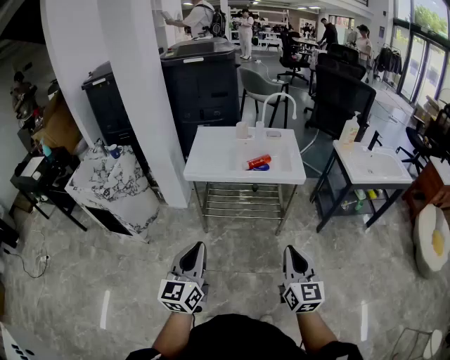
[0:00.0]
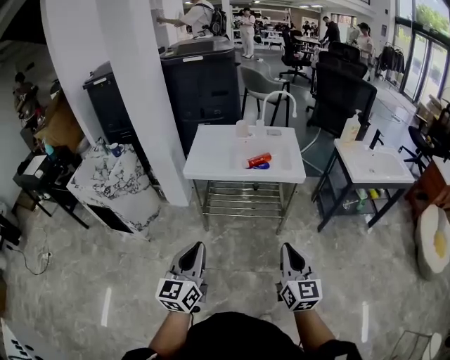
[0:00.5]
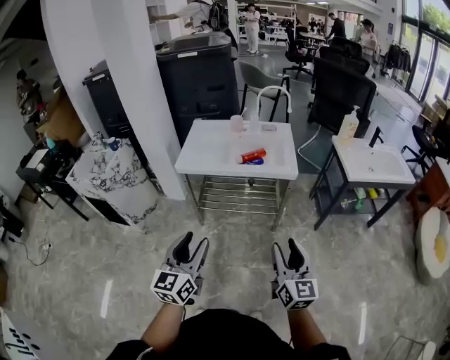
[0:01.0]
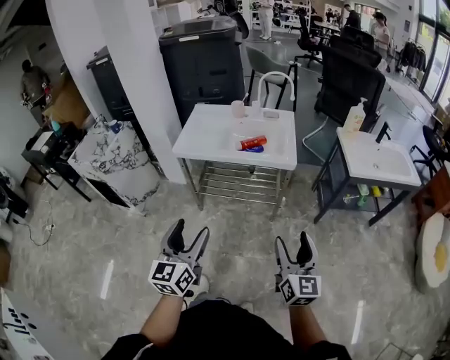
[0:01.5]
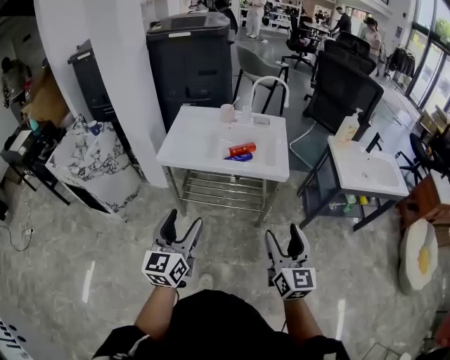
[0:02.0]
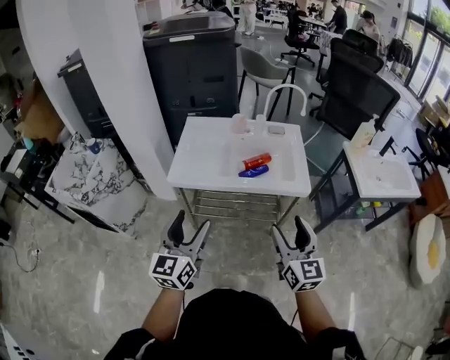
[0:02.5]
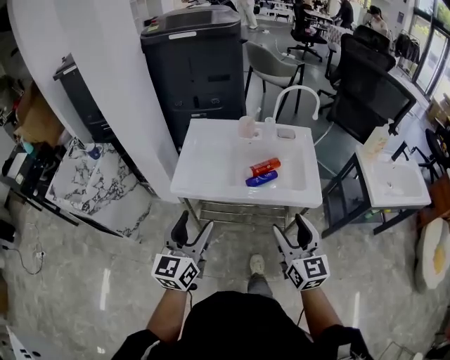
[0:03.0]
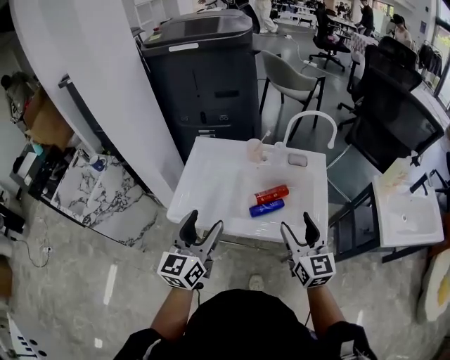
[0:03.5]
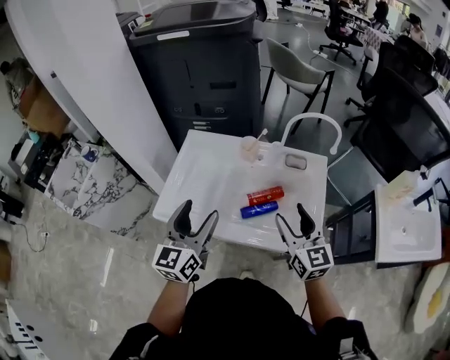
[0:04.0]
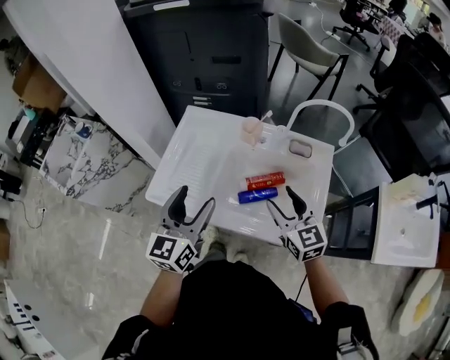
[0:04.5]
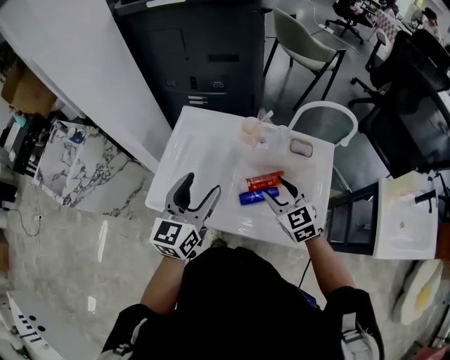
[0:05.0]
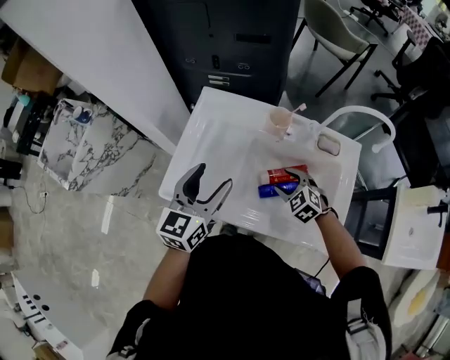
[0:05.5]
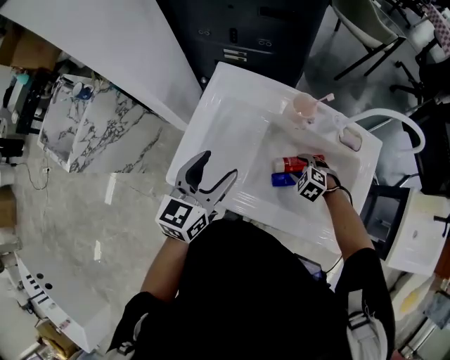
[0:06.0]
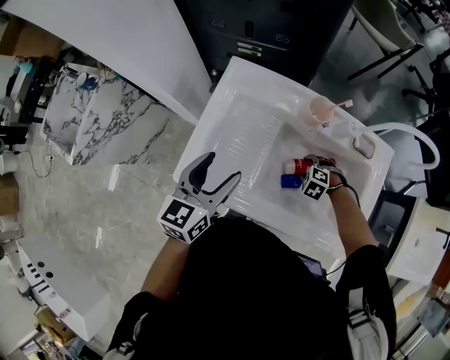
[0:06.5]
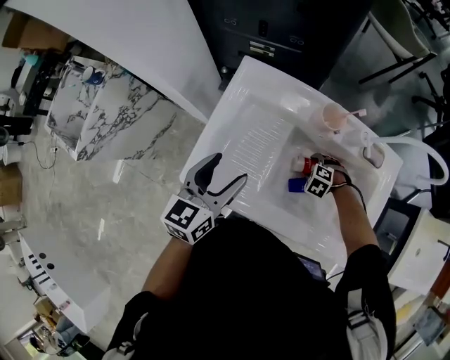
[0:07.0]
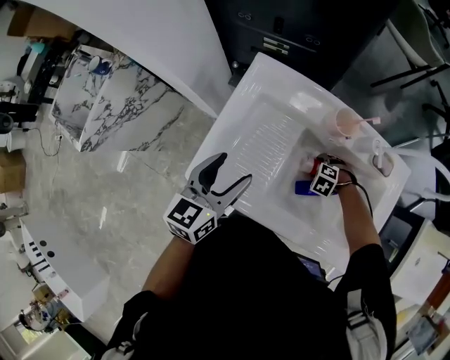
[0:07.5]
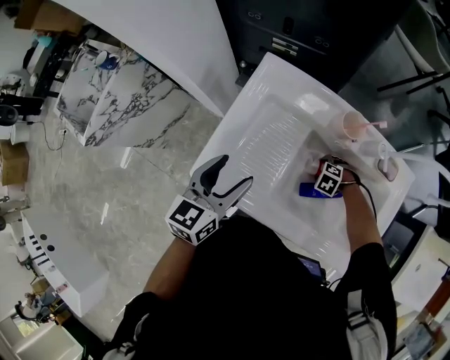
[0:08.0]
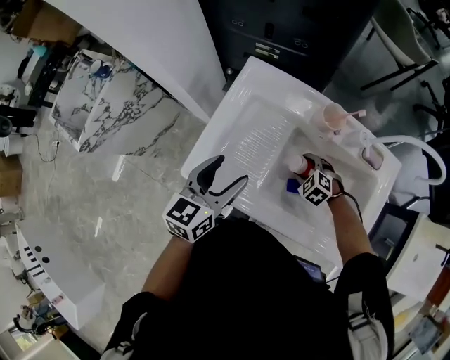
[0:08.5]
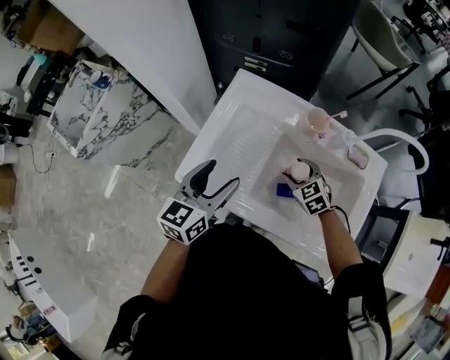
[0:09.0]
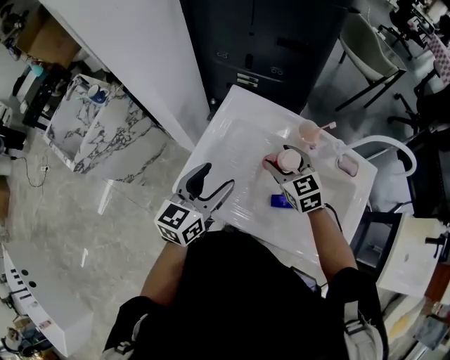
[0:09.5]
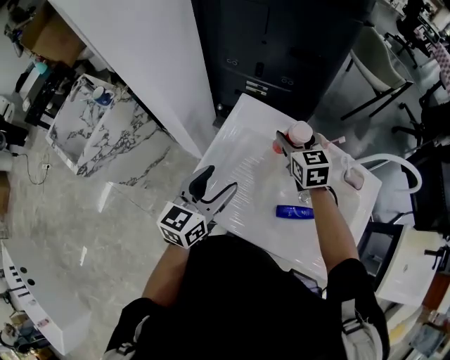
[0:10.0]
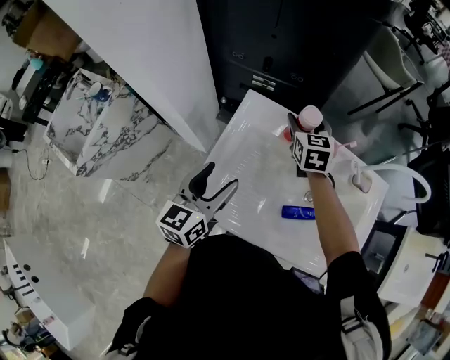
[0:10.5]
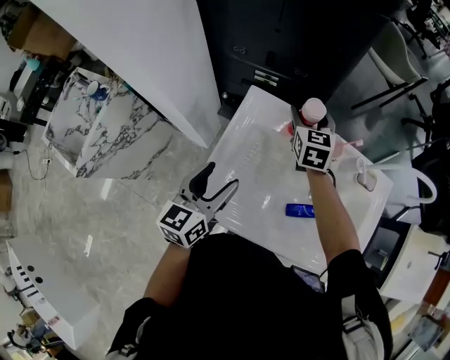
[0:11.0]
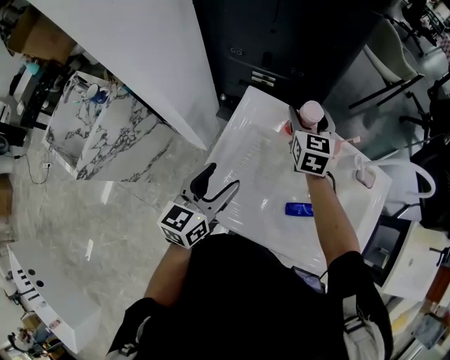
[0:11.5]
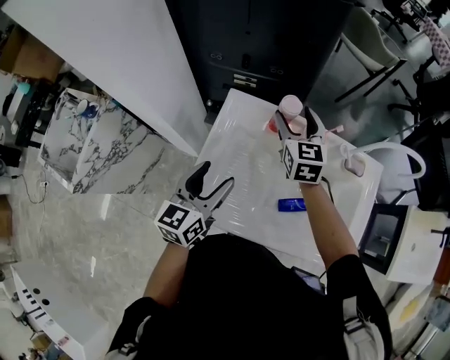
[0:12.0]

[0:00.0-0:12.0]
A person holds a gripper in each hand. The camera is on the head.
0:00.0 to 0:02.0: The grippers both shift forward and to the right by about 15 cm. The left gripper opens its fingers. The right gripper opens up.
0:02.0 to 0:04.0: Both grippers move forward, about 40 cm.
0:04.0 to 0:06.0: The right gripper goes some 35 cm downward and forward, and tilts its fingers about 60 degrees downward. The left gripper travels forward, downward and to the left by roughly 15 cm.
0:06.0 to 0:08.0: The left gripper shifts by about 5 cm, while the right gripper goes approximately 10 cm downward, and changes its angle by approximately 20 degrees.
0:08.0 to 0:10.0: The left gripper moves some 5 cm. Meanwhile the right gripper moves upward, about 30 cm, and tips its fingers upward by roughly 60 degrees.

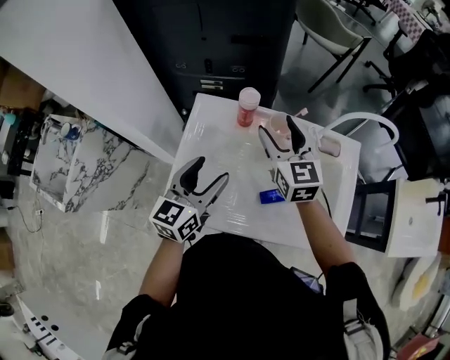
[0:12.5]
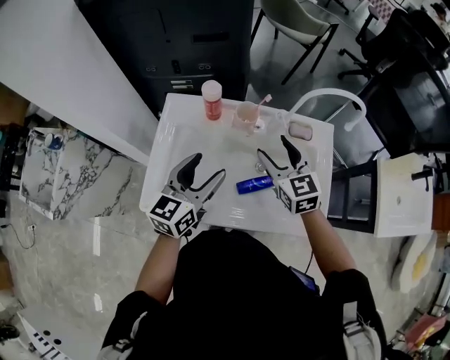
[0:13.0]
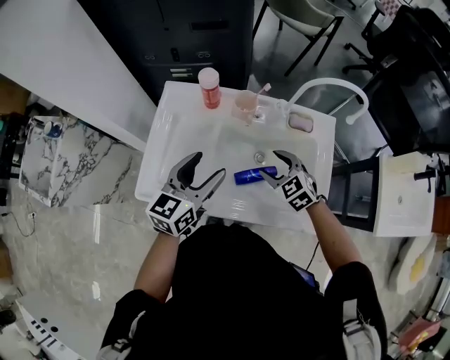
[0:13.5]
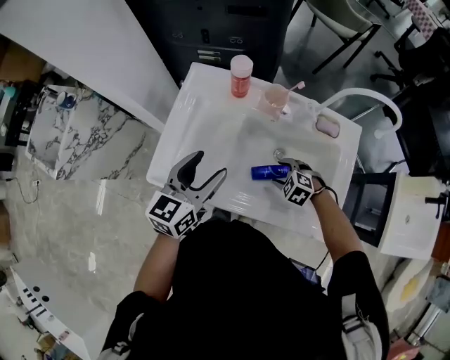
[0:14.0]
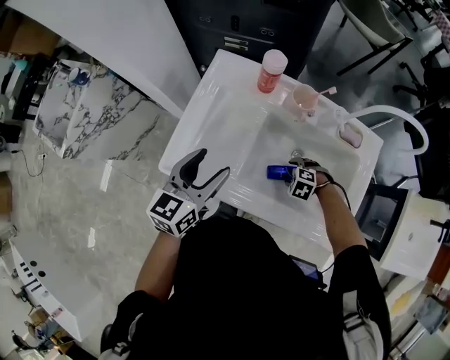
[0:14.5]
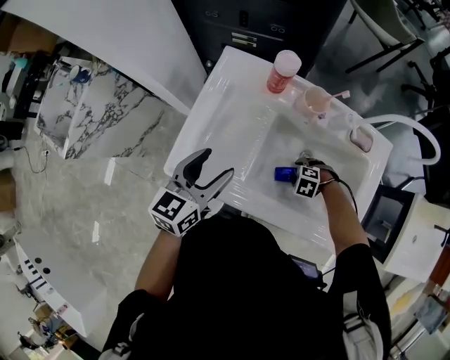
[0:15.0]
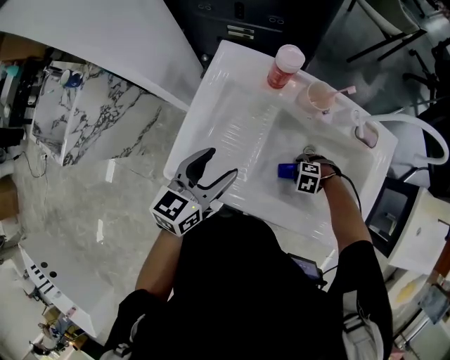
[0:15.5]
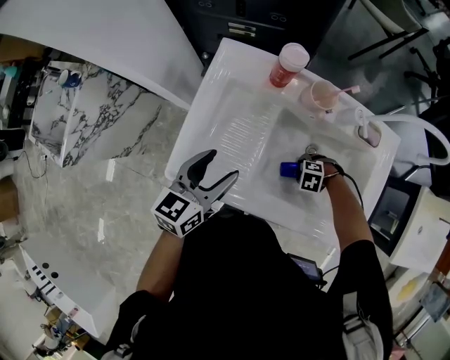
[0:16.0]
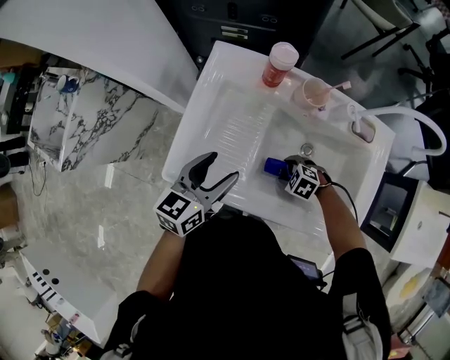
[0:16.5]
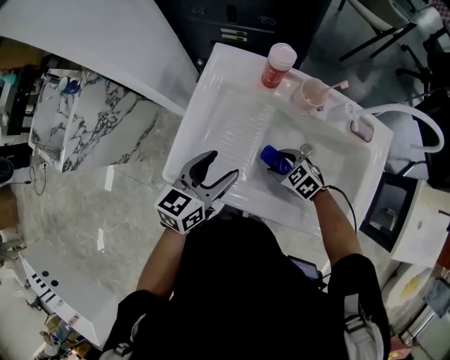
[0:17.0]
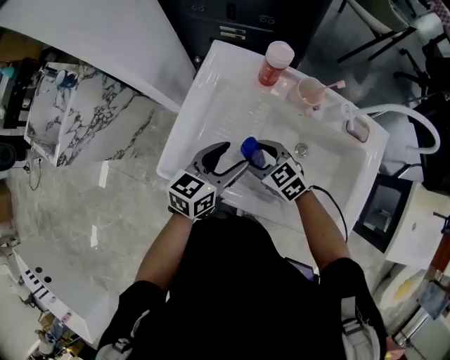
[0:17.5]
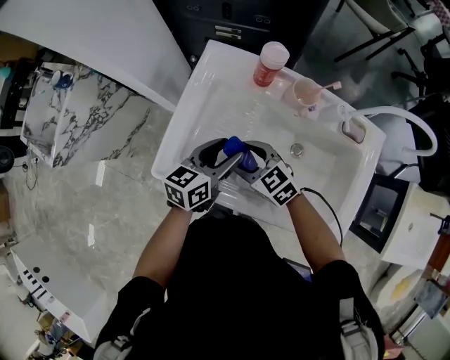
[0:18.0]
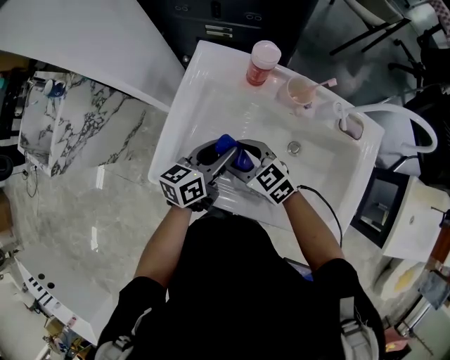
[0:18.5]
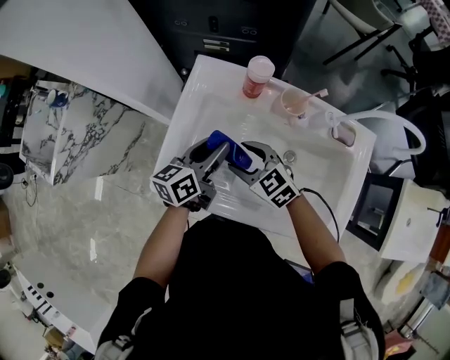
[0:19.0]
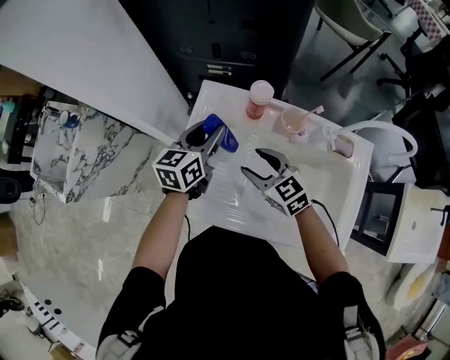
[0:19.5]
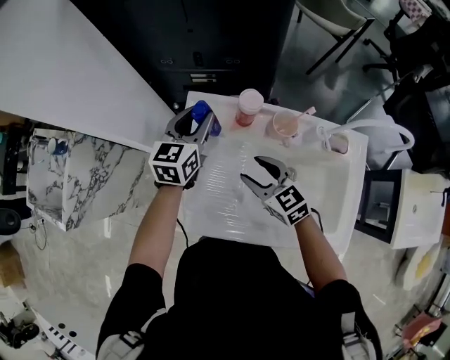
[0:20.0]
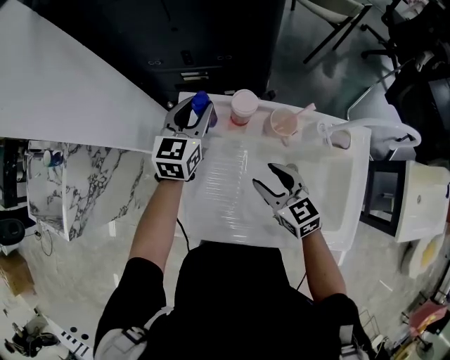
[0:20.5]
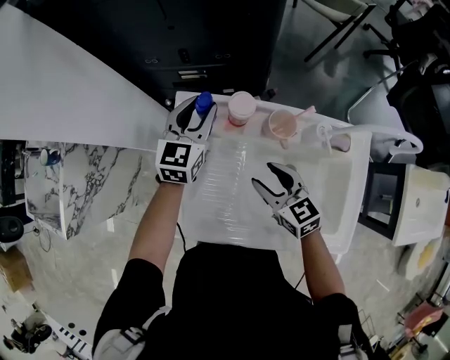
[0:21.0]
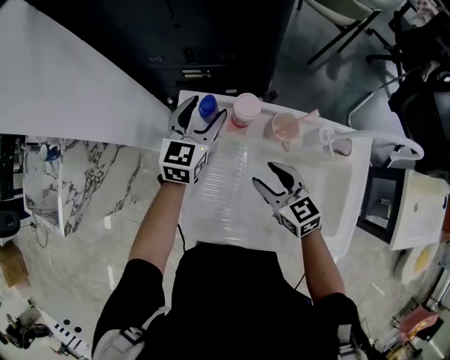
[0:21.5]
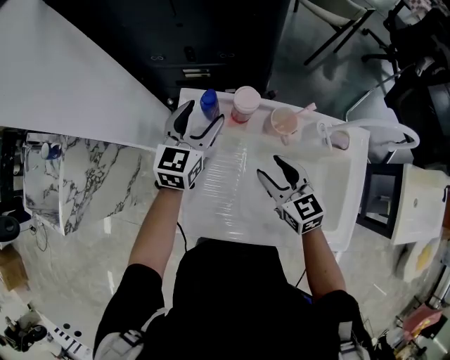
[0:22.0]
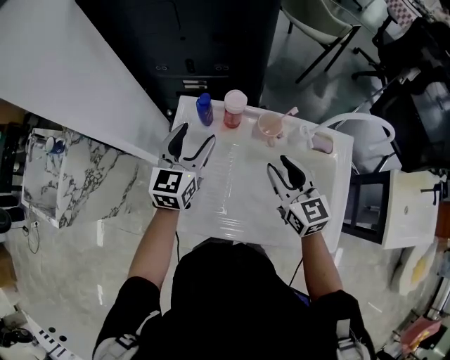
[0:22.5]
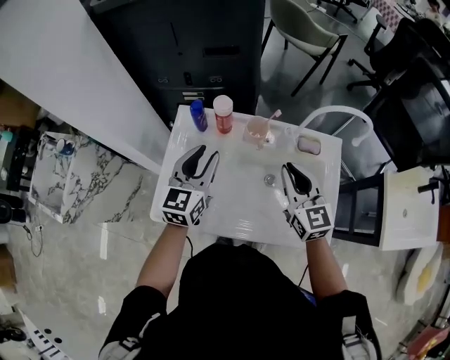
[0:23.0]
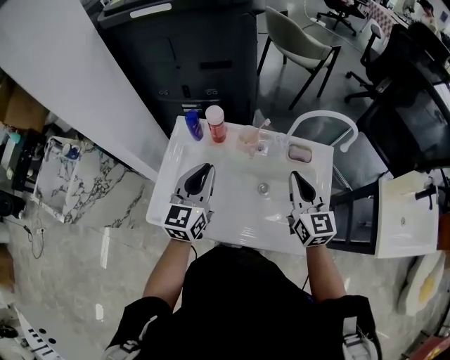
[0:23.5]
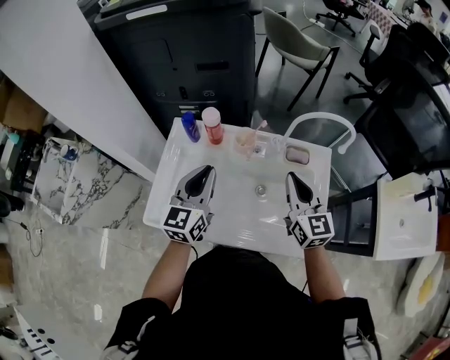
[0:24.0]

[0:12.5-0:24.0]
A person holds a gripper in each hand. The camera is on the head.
0:12.5 to 0:14.5: The right gripper heads downward, covering approximately 35 cm, and angles its fingers downward, by about 70 degrees; the left gripper moves some 10 cm.
0:14.5 to 0:16.5: The right gripper shifts by some 5 cm.
0:16.5 to 0:18.5: The right gripper heads upward, covering approximately 15 cm, and angles its fingers upward, by some 40 degrees, while the left gripper moves some 10 cm, and closes up.
0:18.5 to 0:20.0: The left gripper travels forward and upward by approximately 20 cm, and rotates roughly 30 degrees. The right gripper moves upward, forward and to the right, roughly 10 cm, and turns by roughly 20 degrees.
0:20.0 to 0:22.0: The left gripper opens up. The right gripper moves to the right, roughly 5 cm.
0:22.0 to 0:24.0: The right gripper goes about 20 cm to the right and upward, rotates some 30 degrees, and closes its fingers; the left gripper travels backward, to the right and upward by some 20 cm, and closes.

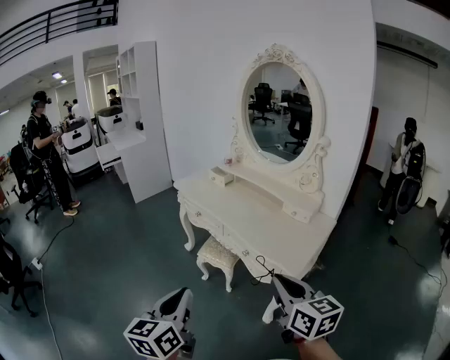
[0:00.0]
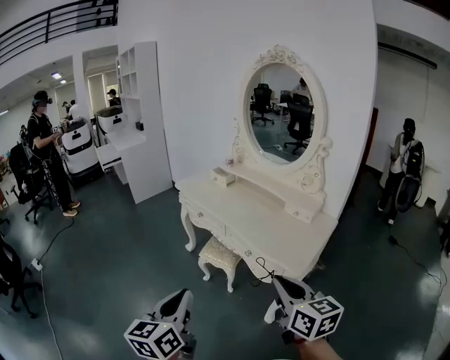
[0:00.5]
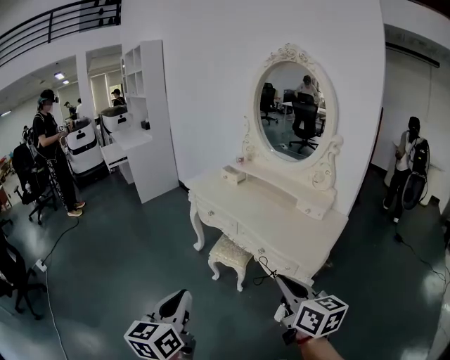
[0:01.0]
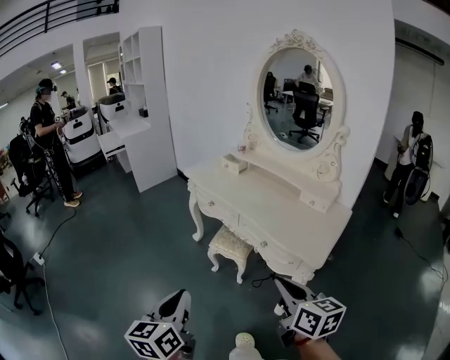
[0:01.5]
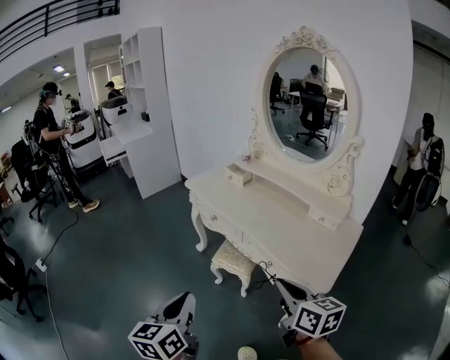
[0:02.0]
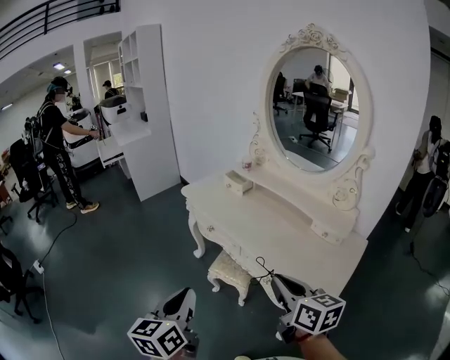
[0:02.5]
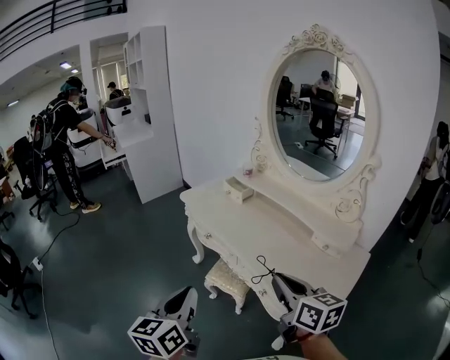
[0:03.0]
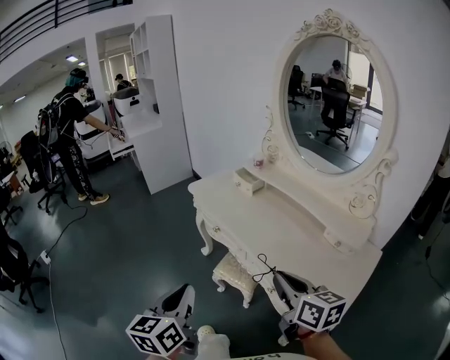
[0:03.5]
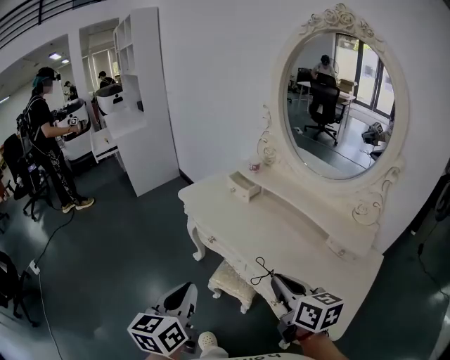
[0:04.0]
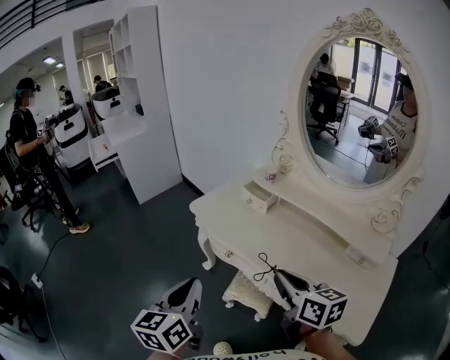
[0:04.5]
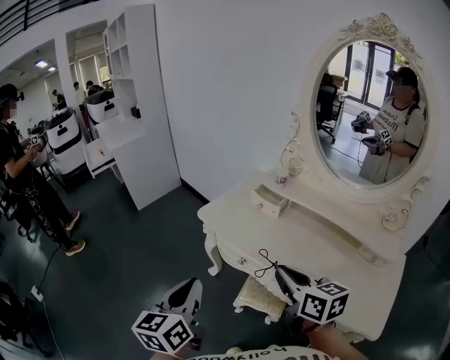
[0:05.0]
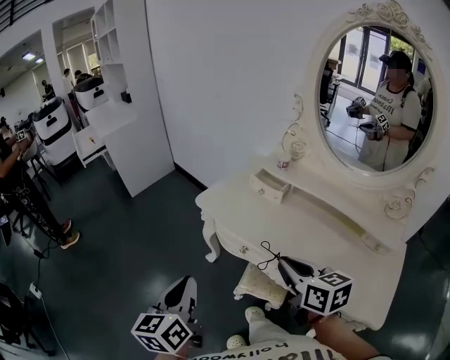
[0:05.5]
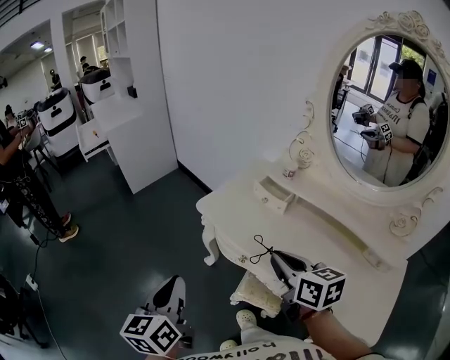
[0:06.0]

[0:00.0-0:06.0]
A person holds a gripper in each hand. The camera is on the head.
0:00.0 to 0:02.0: The grippers both shift forward, to the left and downward by roughly 15 cm.
0:02.0 to 0:04.0: The two grippers go approximately 25 cm forward.
0:04.0 to 0:06.0: Both grippers travel together forward and to the left, roughly 25 cm.
